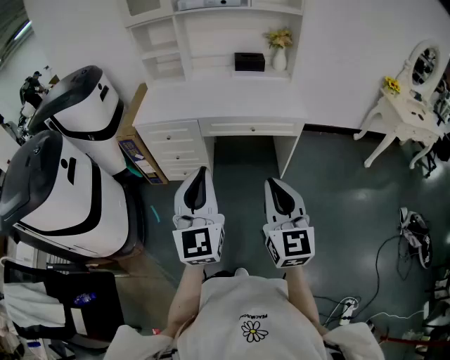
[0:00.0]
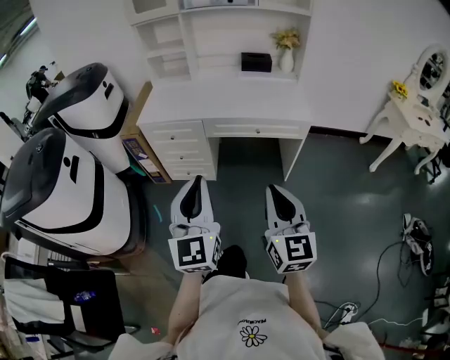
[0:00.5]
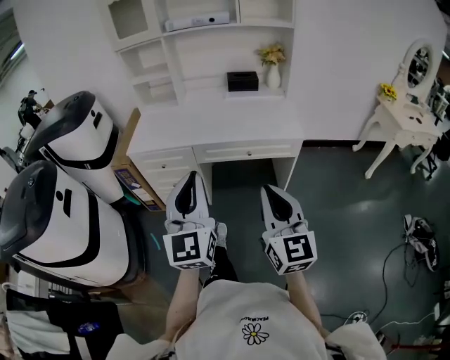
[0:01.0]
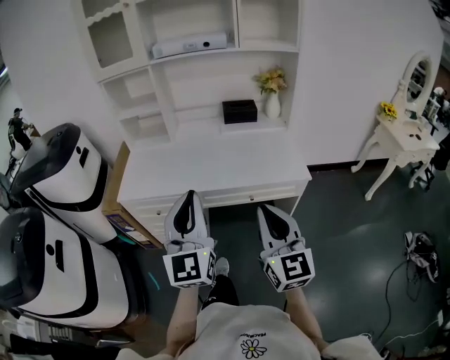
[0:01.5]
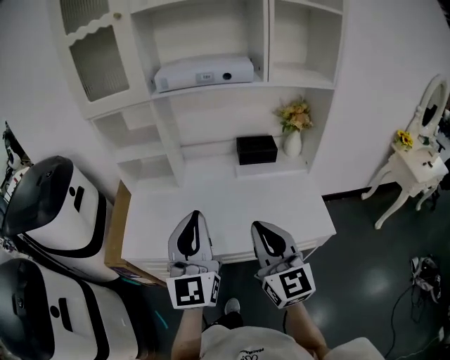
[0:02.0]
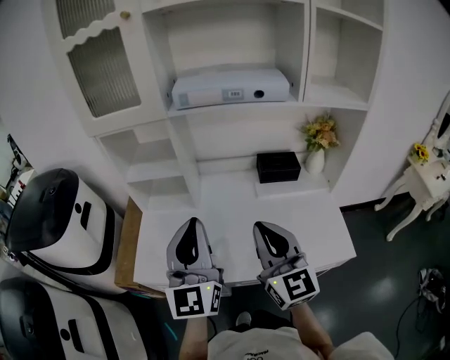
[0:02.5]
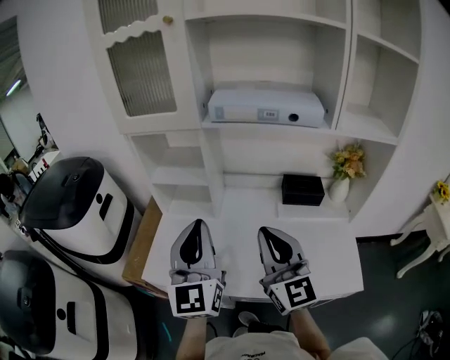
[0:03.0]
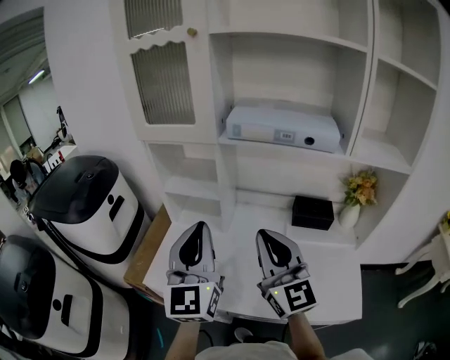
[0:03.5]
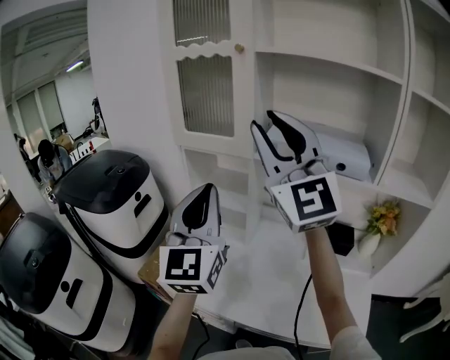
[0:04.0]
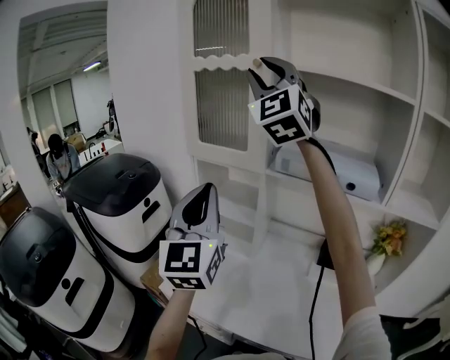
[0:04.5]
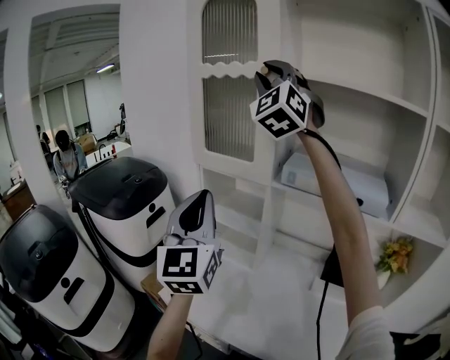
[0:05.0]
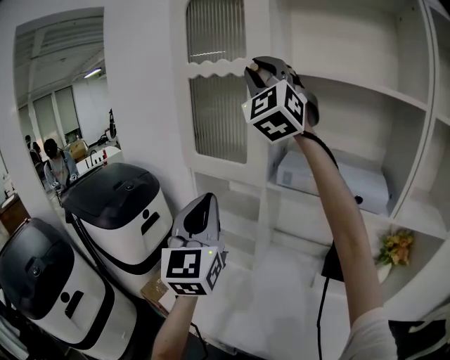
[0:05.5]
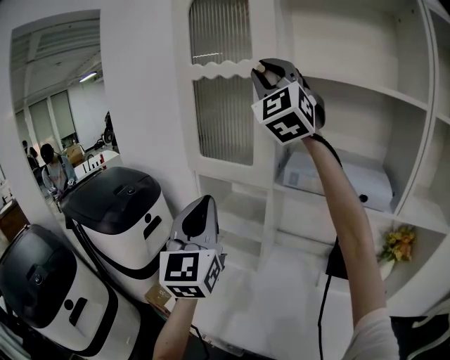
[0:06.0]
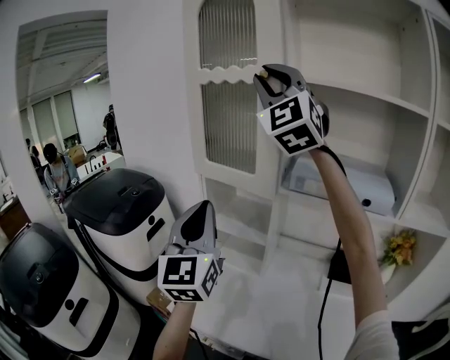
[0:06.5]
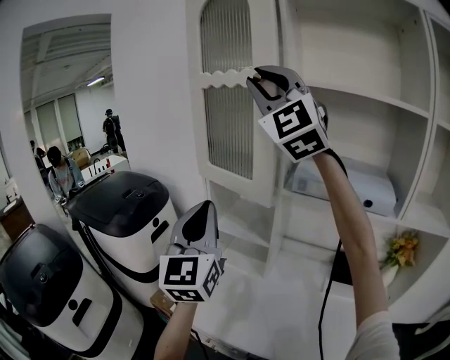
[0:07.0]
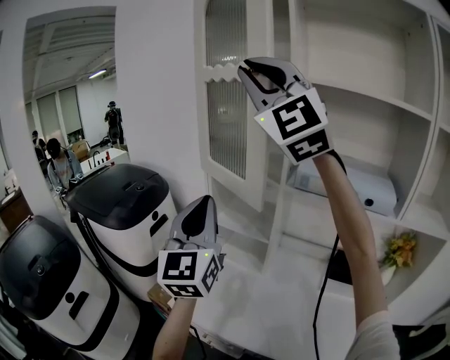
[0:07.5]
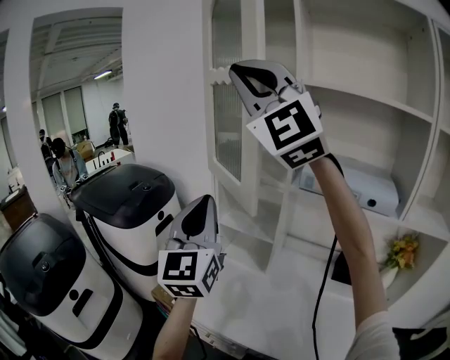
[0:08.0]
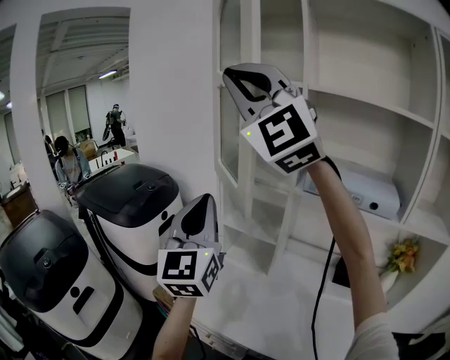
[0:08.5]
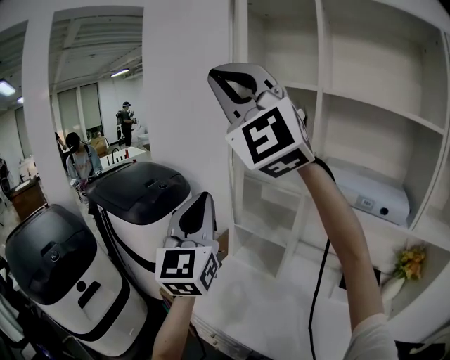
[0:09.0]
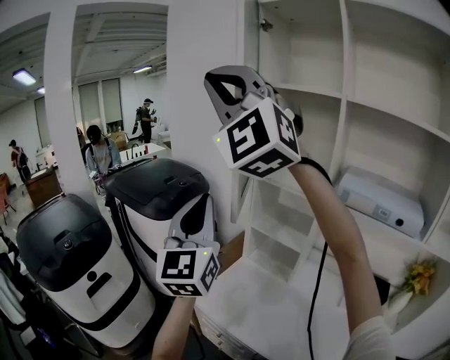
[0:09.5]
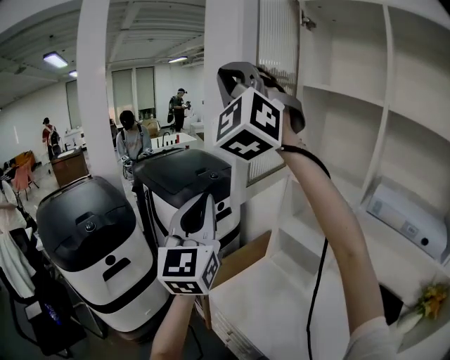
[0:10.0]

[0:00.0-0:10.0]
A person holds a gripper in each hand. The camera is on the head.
0:00.0 to 0:02.0: Both grippers are carried forward, about 50 cm.
0:02.0 to 0:04.0: The right gripper heads upward, covering some 35 cm, swivels about 50 degrees, and opens, while the left gripper changes place by roughly 25 cm, and rotates about 20 degrees.
0:04.0 to 0:06.0: The right gripper shifts some 25 cm forward and upward, and rotates about 30 degrees. The left gripper moves forward, some 10 cm.
0:06.0 to 0:08.0: The left gripper travels to the left by approximately 5 cm; the right gripper shifts roughly 20 cm to the left and backward, and rotates roughly 30 degrees.
0:08.0 to 0:10.0: The grippers both shift to the left by some 20 cm. The left gripper turns by about 20 degrees.

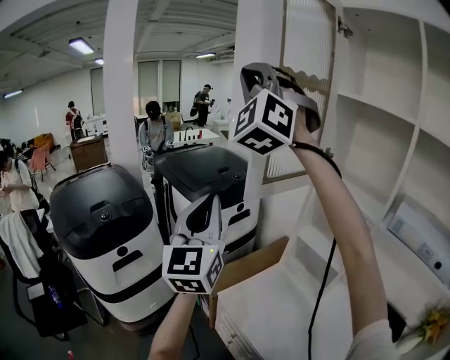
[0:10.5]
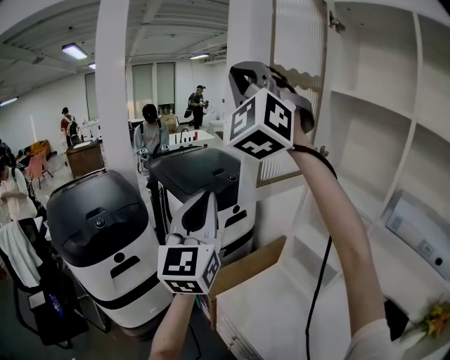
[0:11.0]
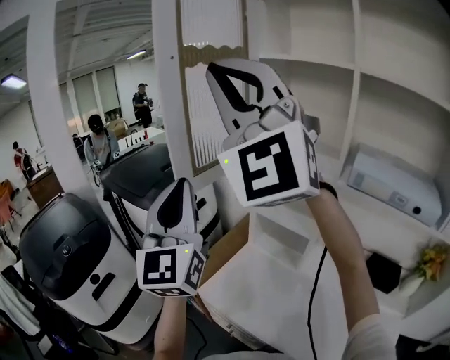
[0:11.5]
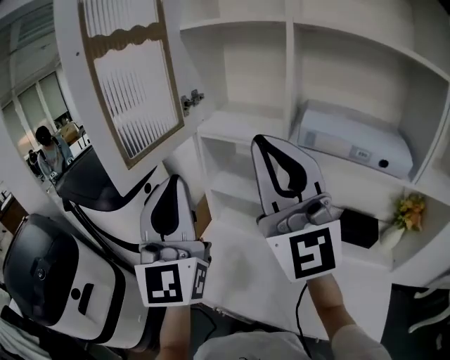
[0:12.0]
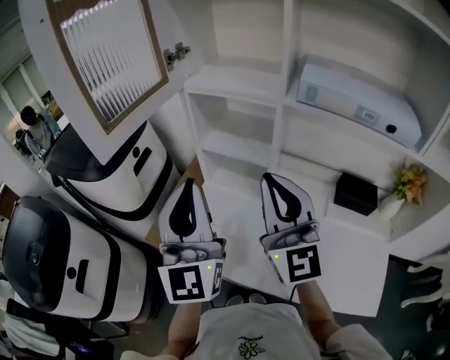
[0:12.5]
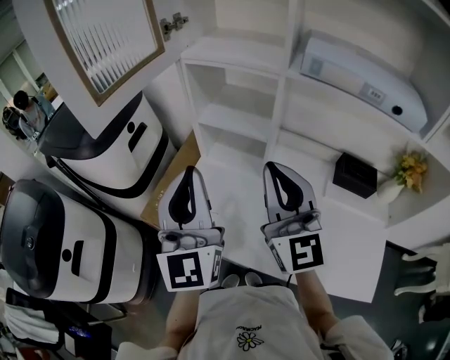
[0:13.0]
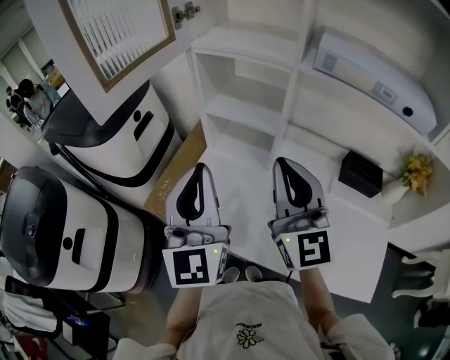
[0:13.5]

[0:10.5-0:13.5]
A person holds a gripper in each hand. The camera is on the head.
0:10.5 to 0:12.0: The left gripper travels to the right by roughly 20 cm, and swivels about 20 degrees. Meanwhile the right gripper travels to the right, backward and downward by approximately 40 cm, and rolls clockwise, seen from behind, by approximately 40 degrees.
0:12.0 to 0:13.5: The grippers both shift downward by approximately 20 cm. The right gripper rotates roughly 30 degrees.

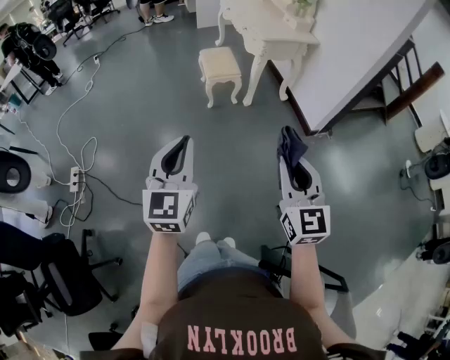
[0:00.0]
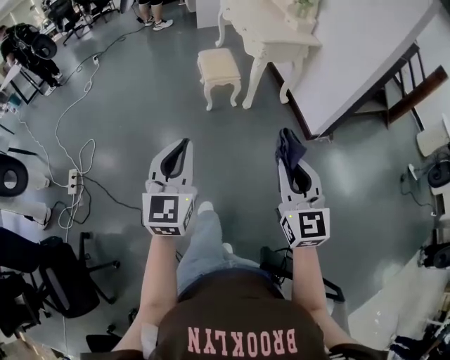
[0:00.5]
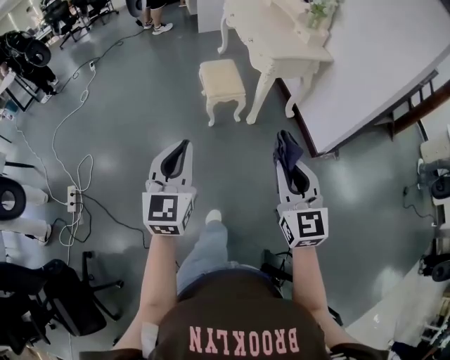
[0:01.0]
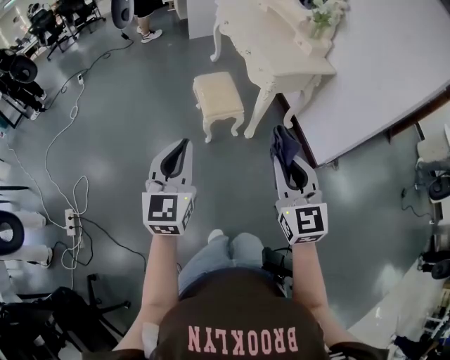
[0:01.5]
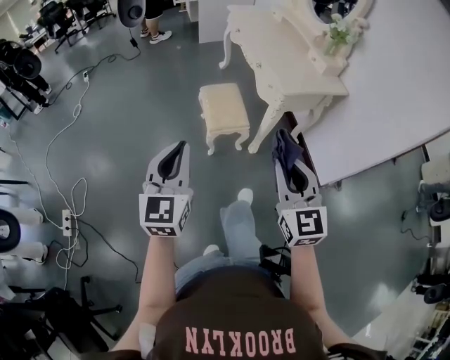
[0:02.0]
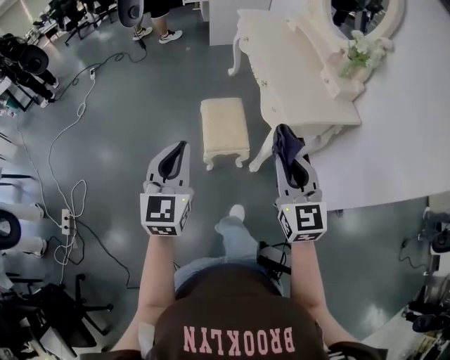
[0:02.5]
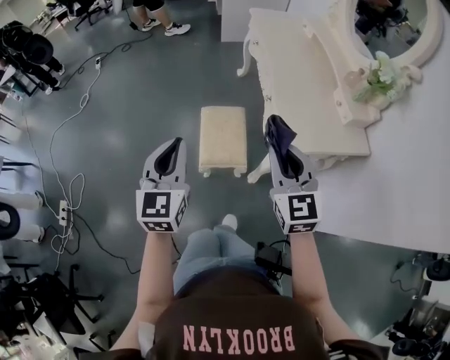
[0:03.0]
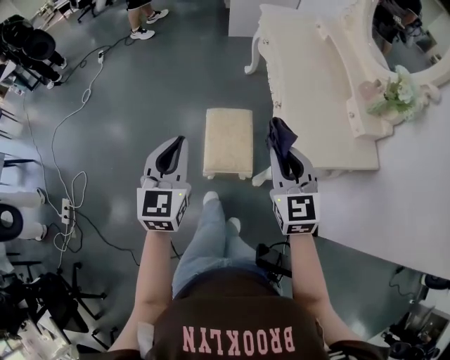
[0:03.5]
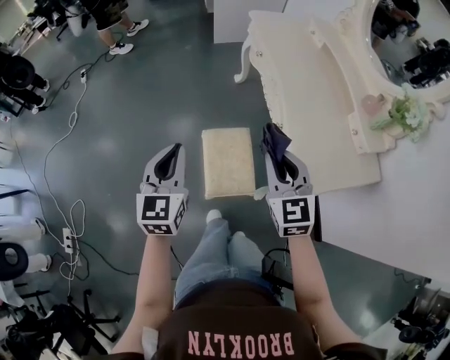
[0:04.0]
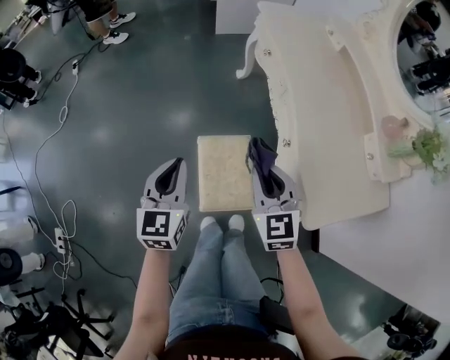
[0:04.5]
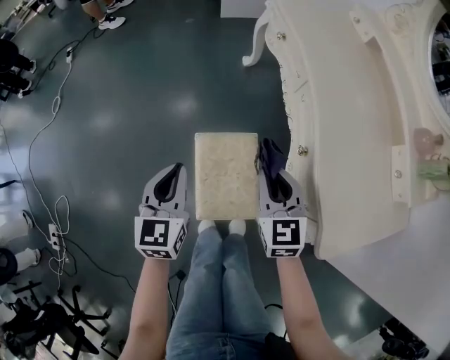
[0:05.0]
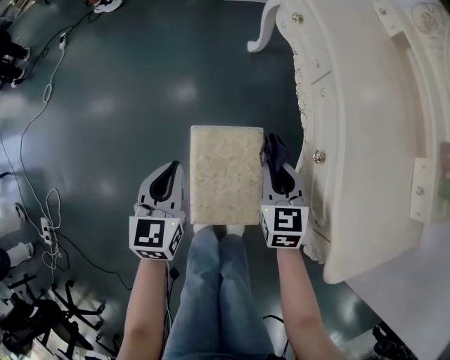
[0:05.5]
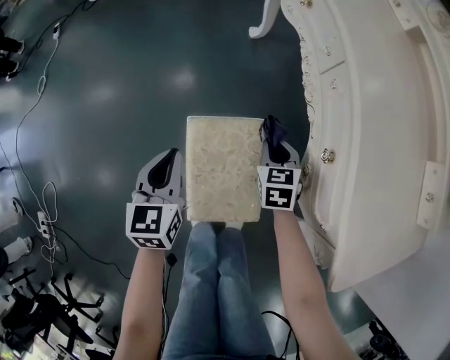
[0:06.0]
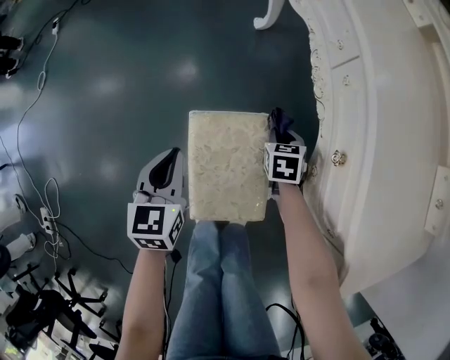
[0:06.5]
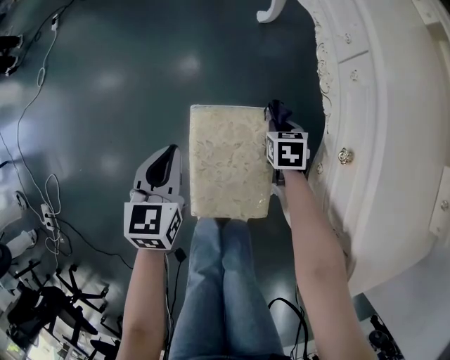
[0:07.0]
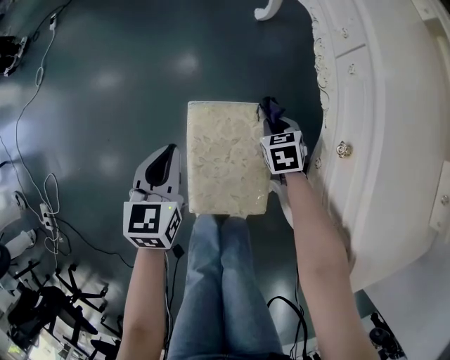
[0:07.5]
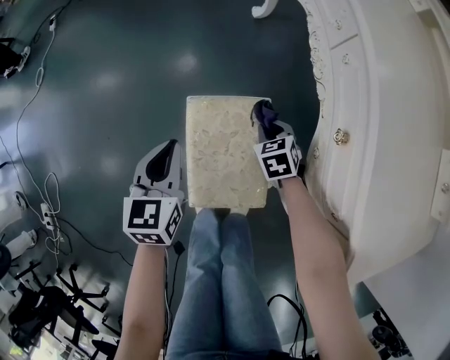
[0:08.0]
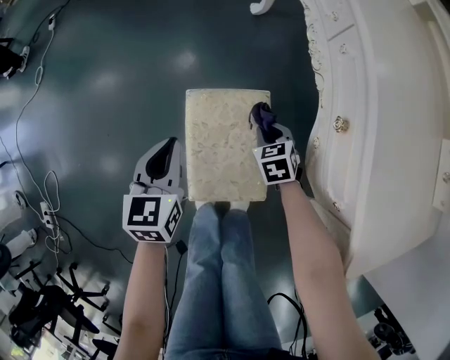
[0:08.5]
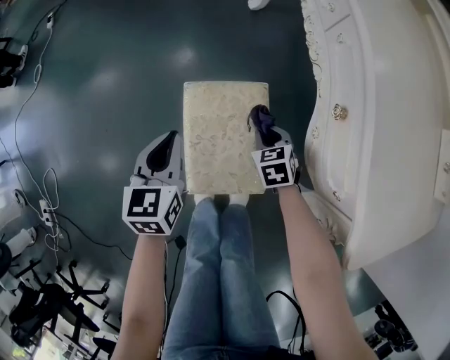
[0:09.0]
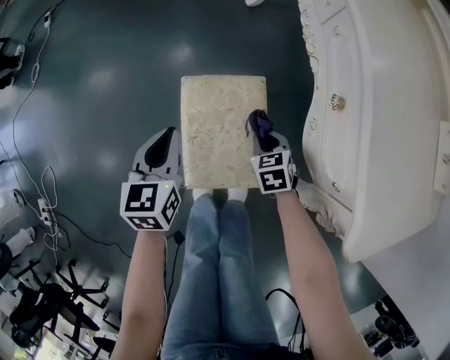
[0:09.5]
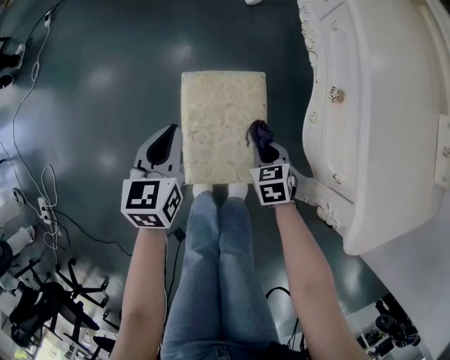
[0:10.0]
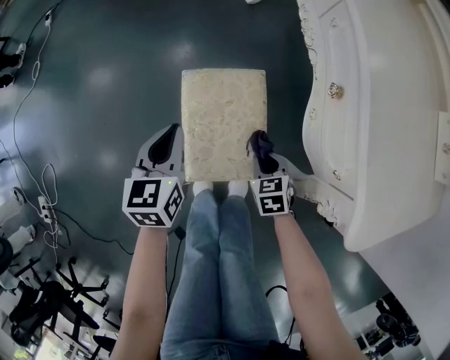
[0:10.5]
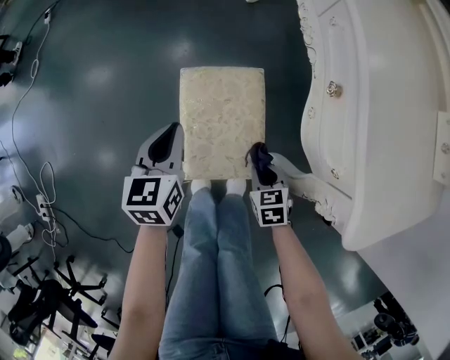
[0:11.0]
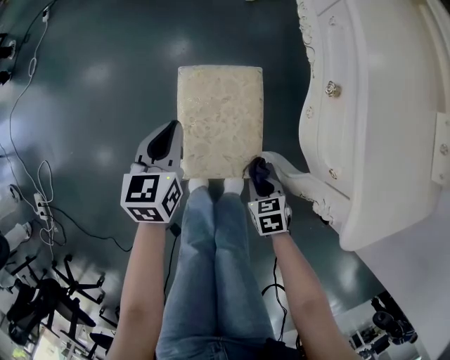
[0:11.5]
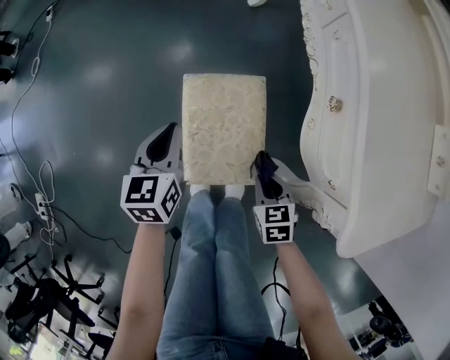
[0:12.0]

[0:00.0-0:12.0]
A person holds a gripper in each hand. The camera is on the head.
0:00.0 to 0:02.0: Both grippers are carried forward, approximately 50 cm.
0:02.0 to 0:04.0: Both grippers are carried forward, roughly 50 cm.
0:04.0 to 0:06.0: Both grippers move downward and forward, approximately 40 cm. The right gripper tilts its fingers about 30 degrees downward.
0:06.0 to 0:08.0: The right gripper heads downward, covering approximately 10 cm, and rotates approximately 20 degrees.
0:08.0 to 0:10.0: The right gripper heads backward, covering roughly 15 cm.
0:10.0 to 0:12.0: The right gripper moves backward, some 5 cm.

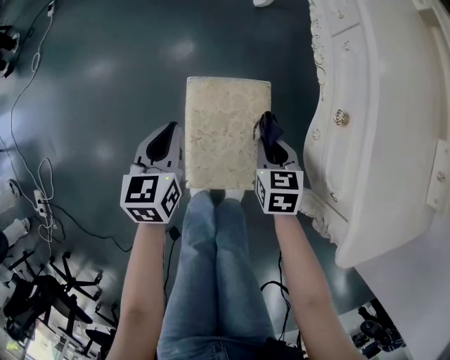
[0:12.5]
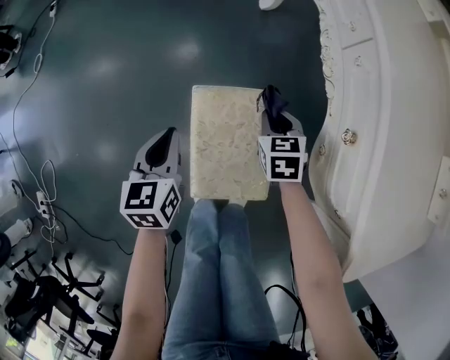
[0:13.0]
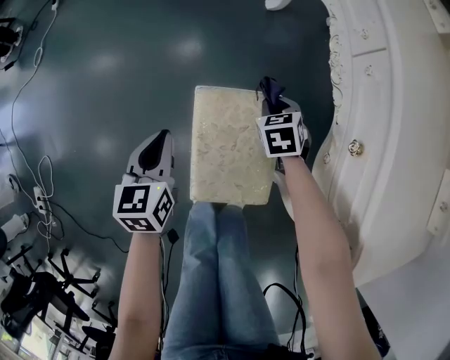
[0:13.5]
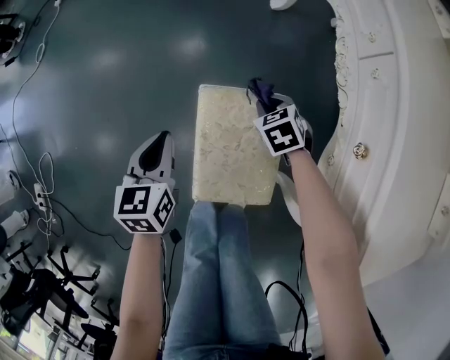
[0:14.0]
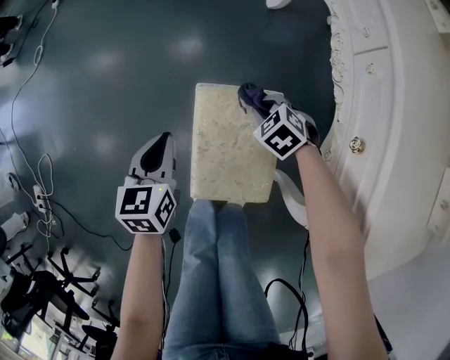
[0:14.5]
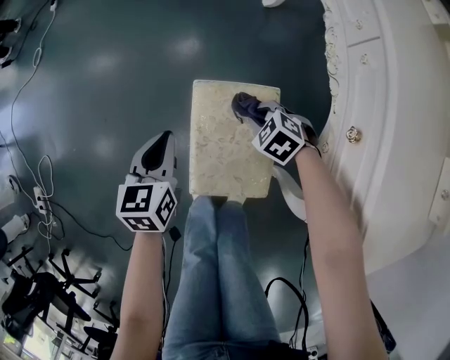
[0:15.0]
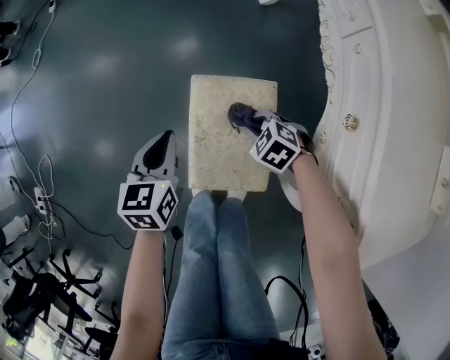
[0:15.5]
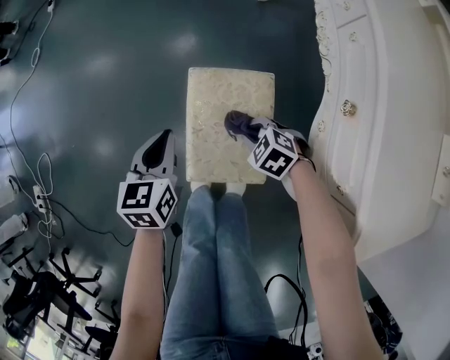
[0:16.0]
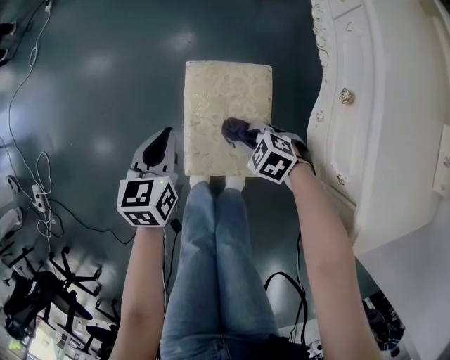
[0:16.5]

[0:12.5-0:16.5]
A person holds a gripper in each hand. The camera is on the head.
0:12.5 to 0:14.5: The right gripper heads forward and downward, covering roughly 15 cm, and rolls counterclockwise, seen from behind, by about 40 degrees.
0:14.5 to 0:16.5: The right gripper is displaced backward and to the left by approximately 20 cm. Meanwhile the left gripper shifts approximately 5 cm backward.